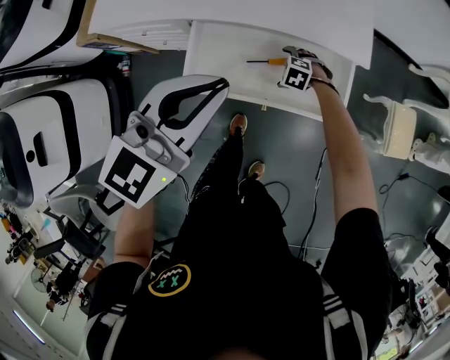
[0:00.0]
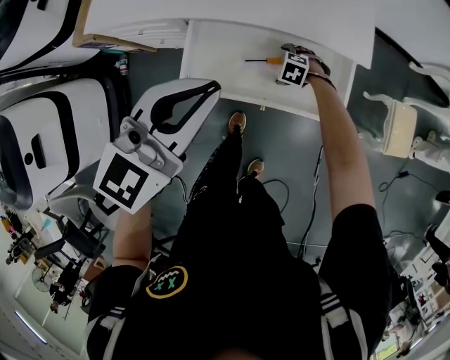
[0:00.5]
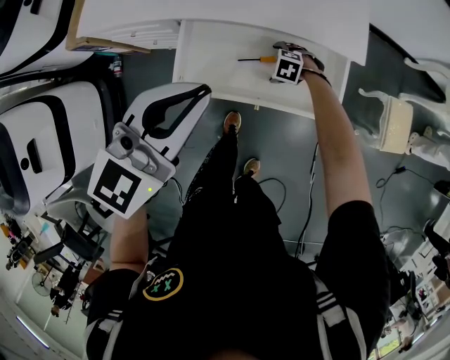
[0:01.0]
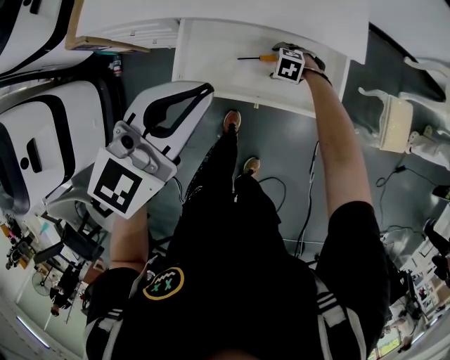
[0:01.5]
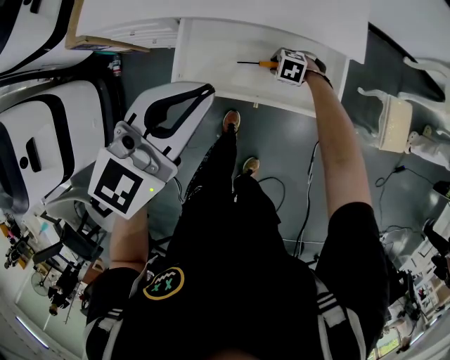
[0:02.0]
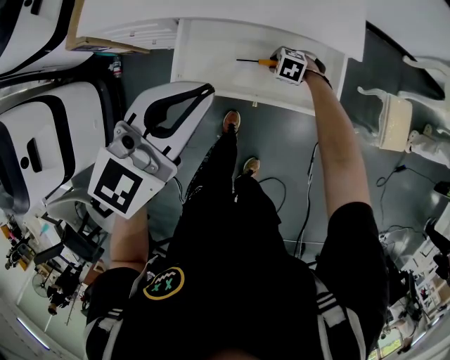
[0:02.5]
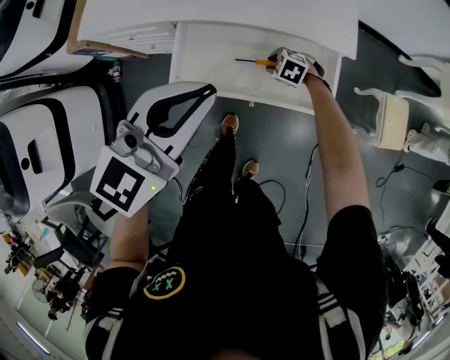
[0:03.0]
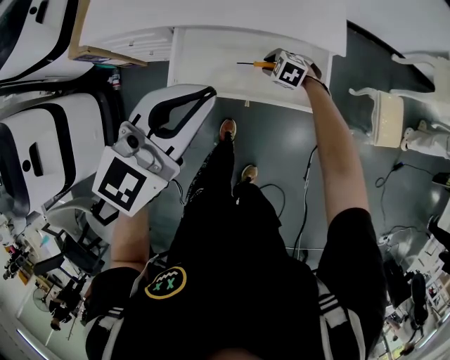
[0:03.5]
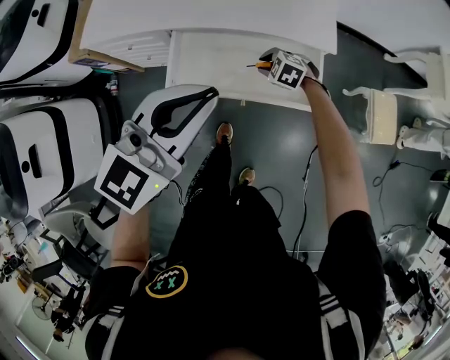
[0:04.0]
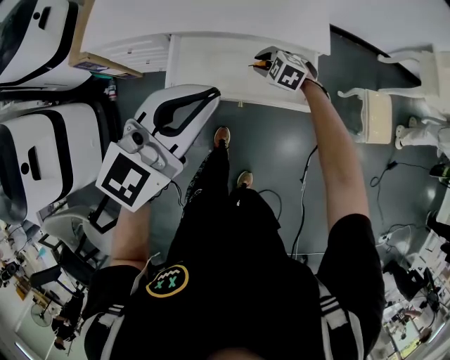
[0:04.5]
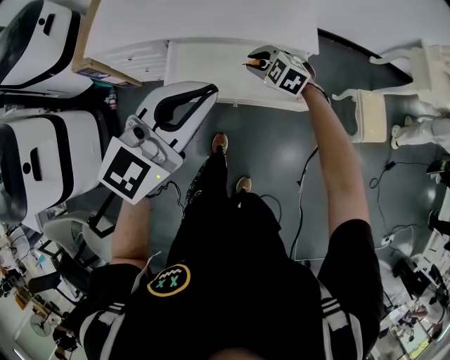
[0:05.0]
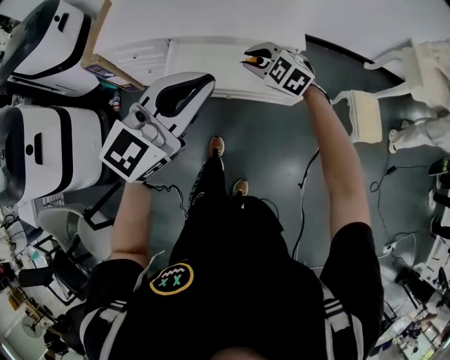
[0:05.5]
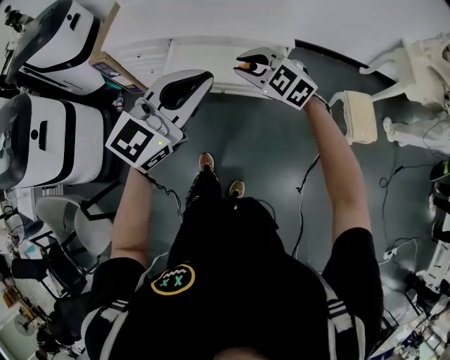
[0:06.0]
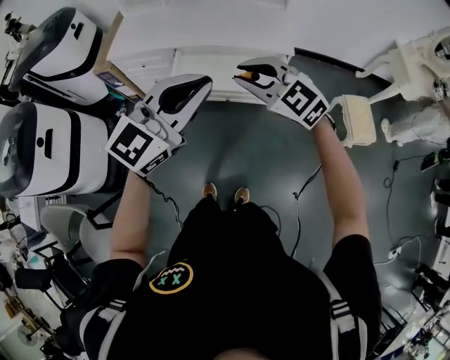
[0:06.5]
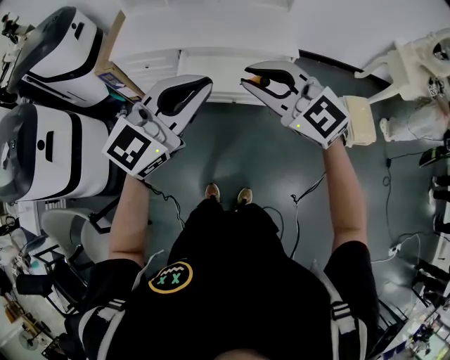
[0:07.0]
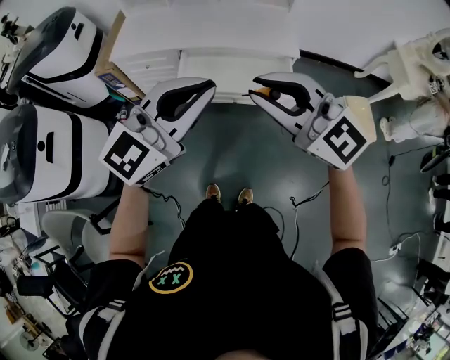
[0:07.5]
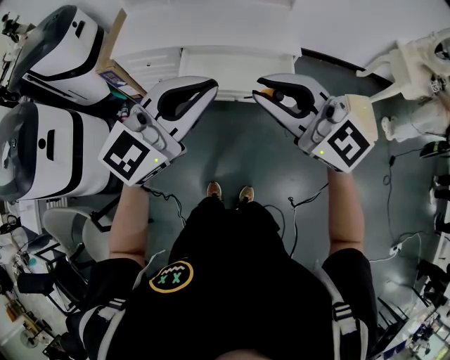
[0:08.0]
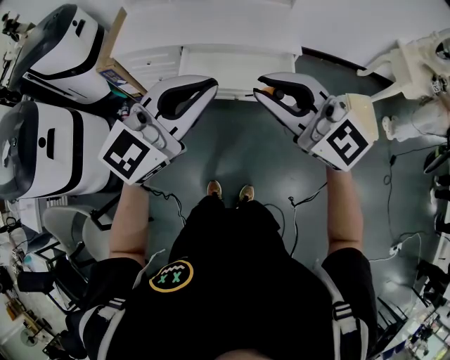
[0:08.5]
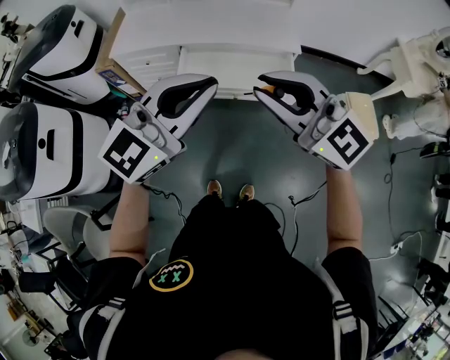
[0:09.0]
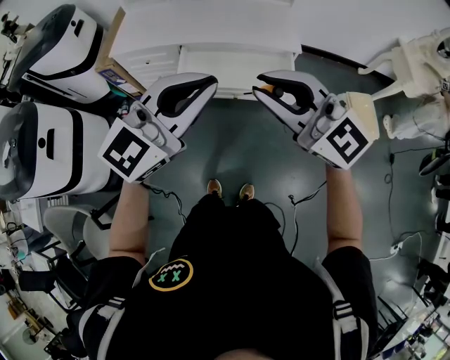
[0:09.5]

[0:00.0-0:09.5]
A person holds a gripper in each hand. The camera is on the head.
0:00.0 to 0:02.0: The right gripper closes its fingers.
0:02.0 to 0:04.0: The left gripper changes place by some 10 cm, while the right gripper moves upward, about 10 cm.
0:04.0 to 0:05.5: The left gripper moves backward and upward, about 15 cm, while the right gripper goes approximately 25 cm upward and backward, and swivels some 20 degrees.
0:05.5 to 0:07.5: The left gripper heads backward and upward, covering some 10 cm. Meanwhile the right gripper heads upward and backward, covering some 35 cm, and angles its fingers upward, by roughly 40 degrees.
0:07.5 to 0:09.5: Both grippers stay put.

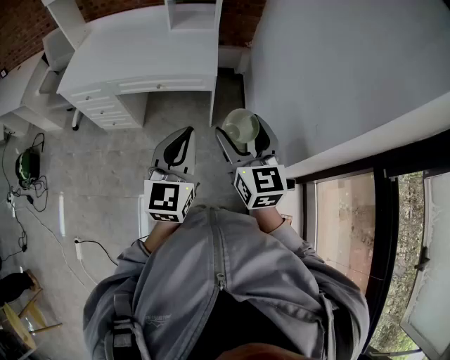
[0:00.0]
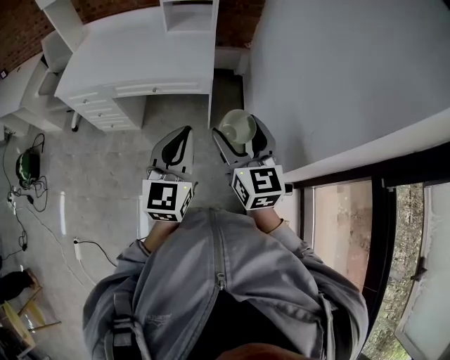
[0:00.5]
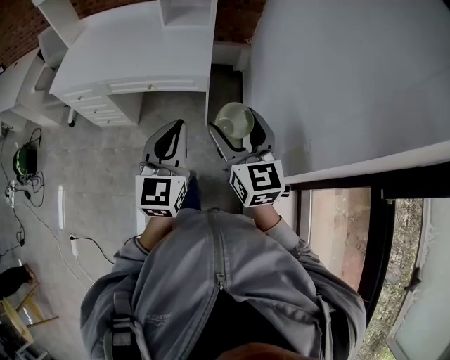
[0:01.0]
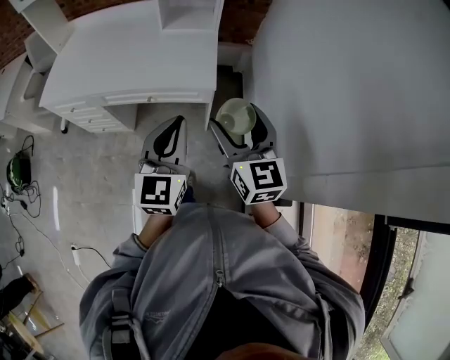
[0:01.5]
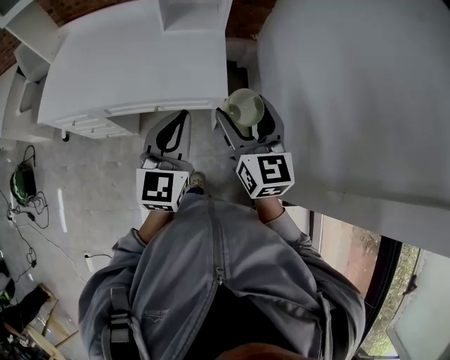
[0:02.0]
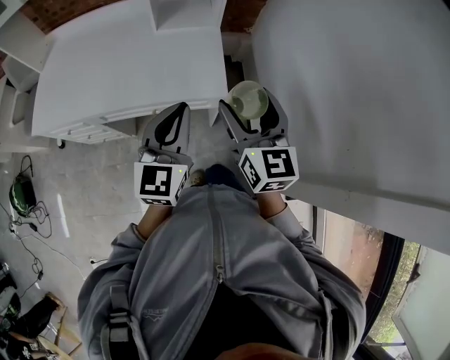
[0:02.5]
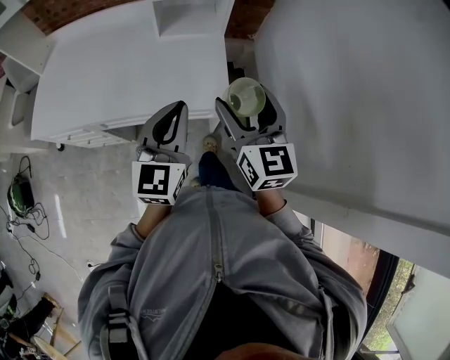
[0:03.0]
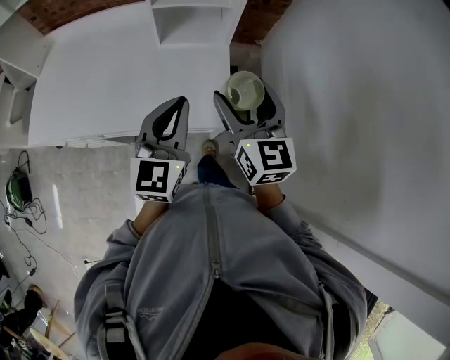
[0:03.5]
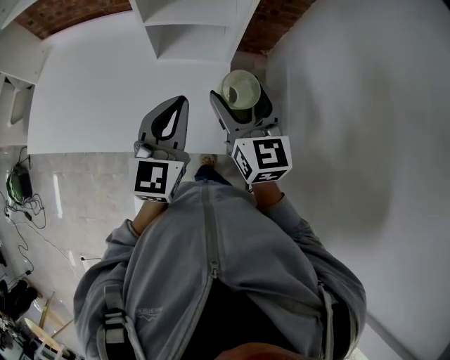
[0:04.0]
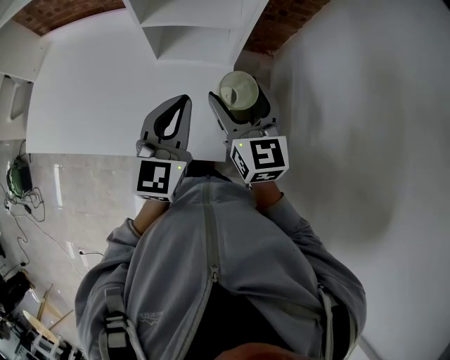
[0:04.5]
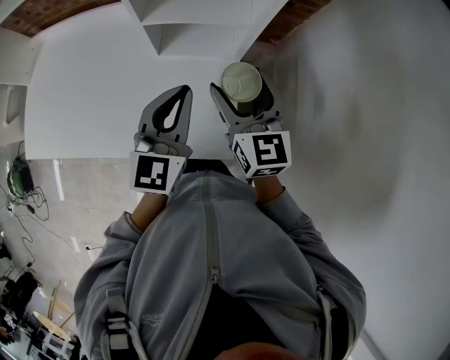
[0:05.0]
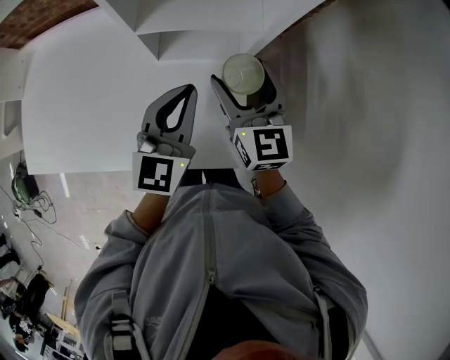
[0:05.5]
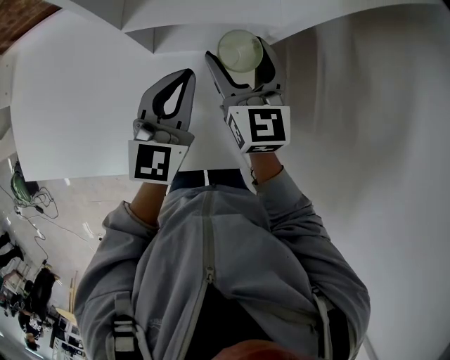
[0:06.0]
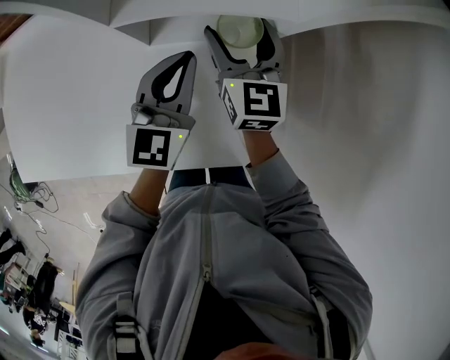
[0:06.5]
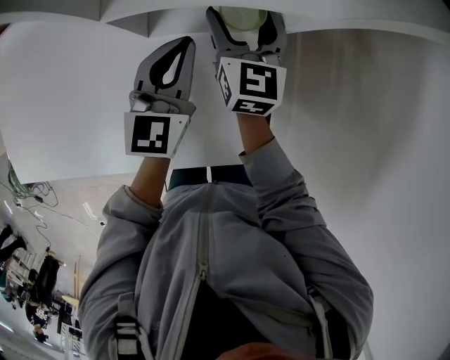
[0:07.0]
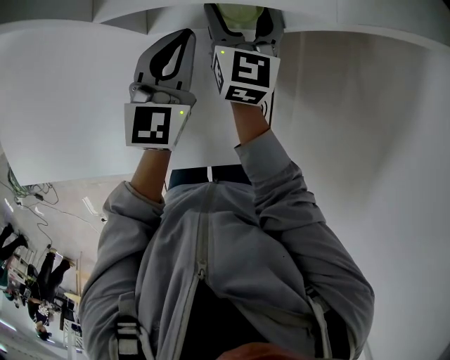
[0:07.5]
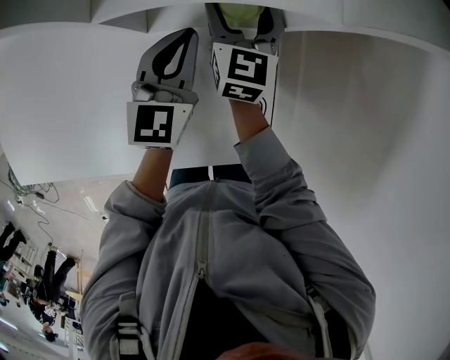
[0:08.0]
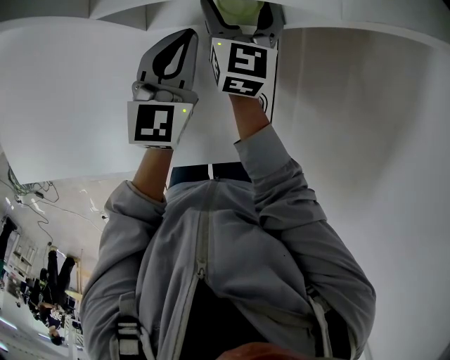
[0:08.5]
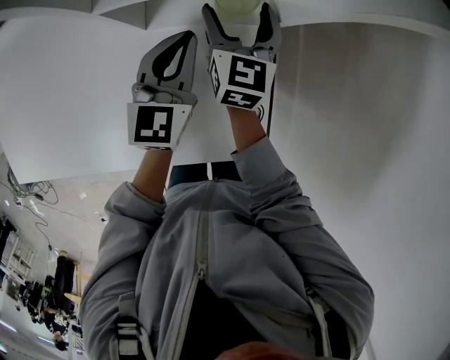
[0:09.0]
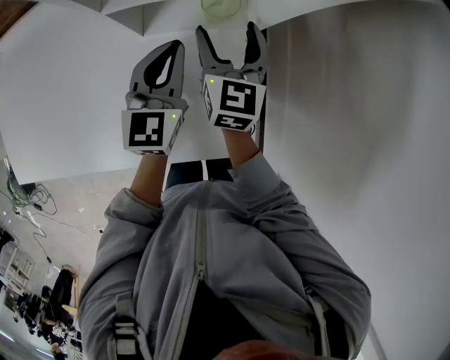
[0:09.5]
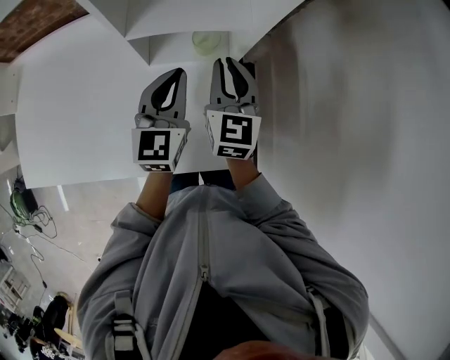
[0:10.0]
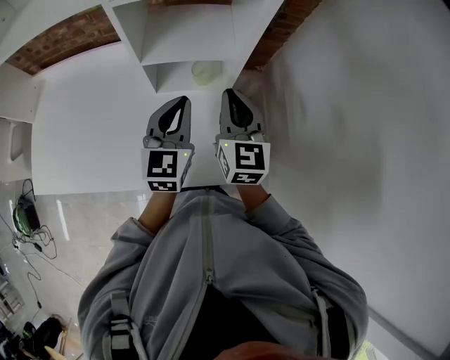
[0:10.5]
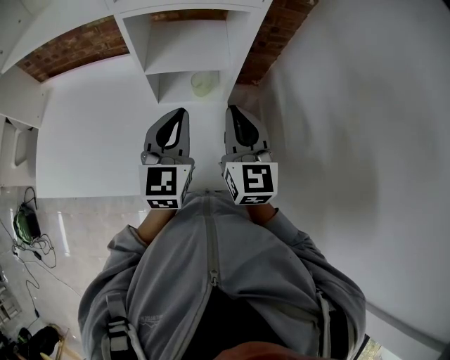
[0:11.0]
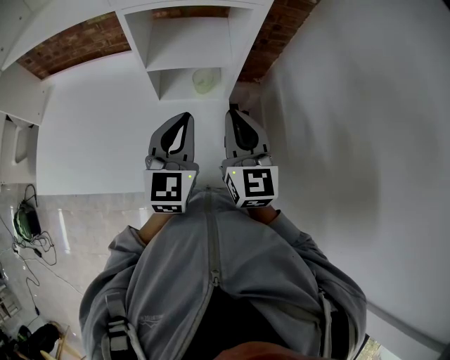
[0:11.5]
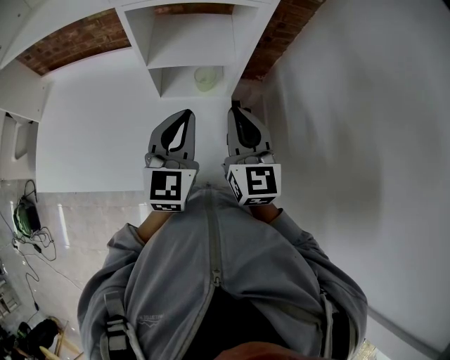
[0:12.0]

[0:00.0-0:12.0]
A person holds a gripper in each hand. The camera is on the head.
0:00.0 to 0:02.0: The two grippers go about 25 cm forward.
0:02.0 to 0:04.0: The two grippers go some 30 cm forward.
0:04.0 to 0:06.0: The grippers both shift forward and downward by about 25 cm.
0:06.0 to 0:08.0: The two grippers go roughly 15 cm downward and forward.
0:08.0 to 0:10.0: The left gripper moves backward and upward, some 10 cm, while the right gripper is displaced backward and upward by some 15 cm, and closes up.
0:10.0 to 0:12.0: The grippers both shift upward and backward by approximately 15 cm.

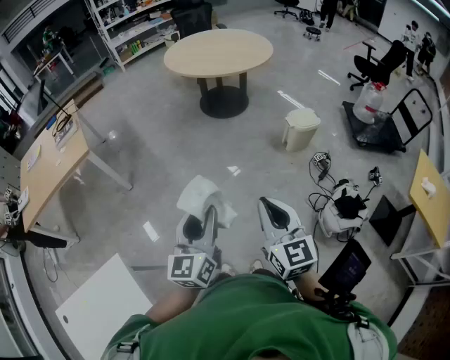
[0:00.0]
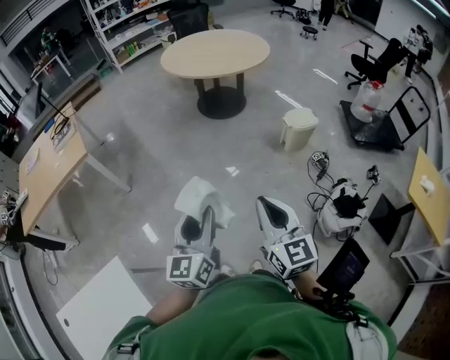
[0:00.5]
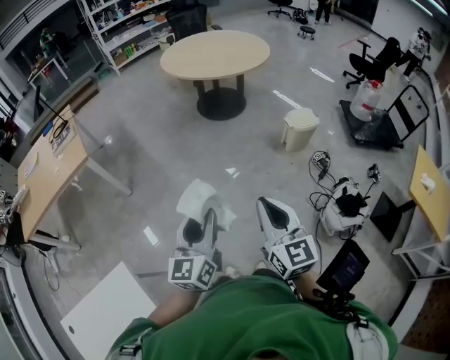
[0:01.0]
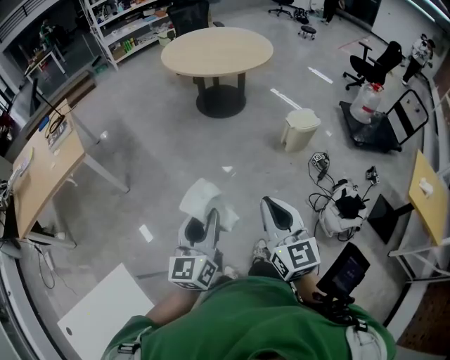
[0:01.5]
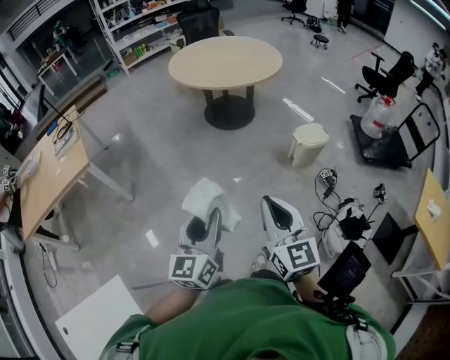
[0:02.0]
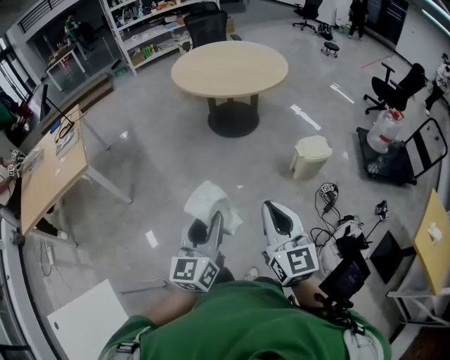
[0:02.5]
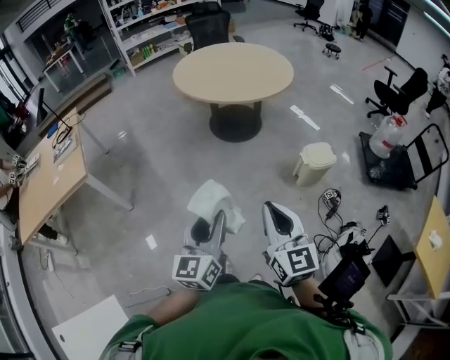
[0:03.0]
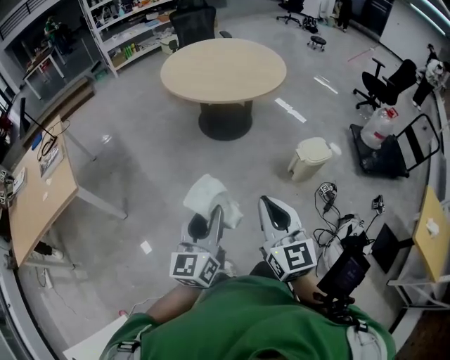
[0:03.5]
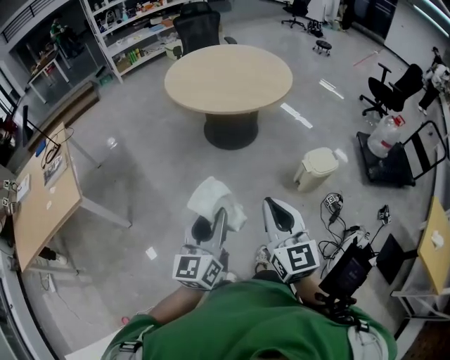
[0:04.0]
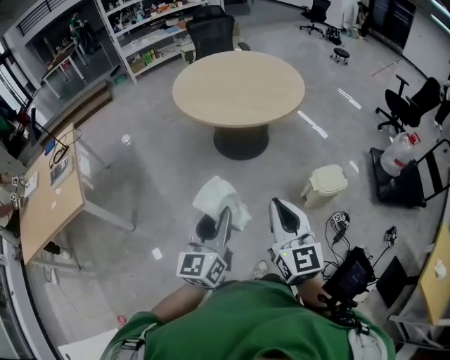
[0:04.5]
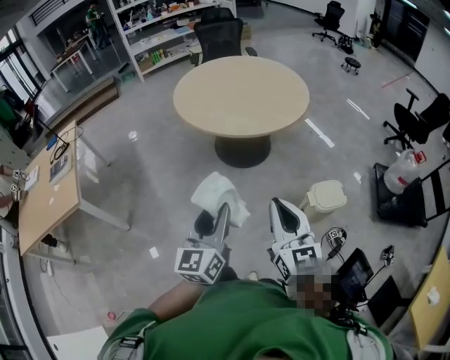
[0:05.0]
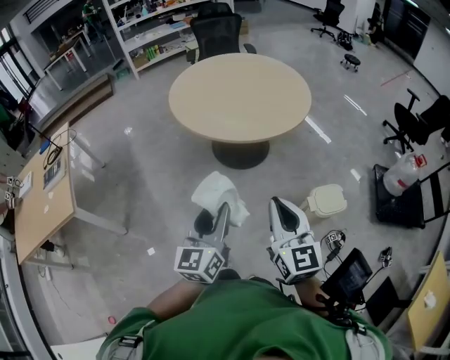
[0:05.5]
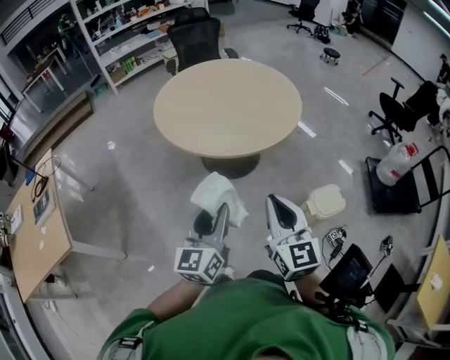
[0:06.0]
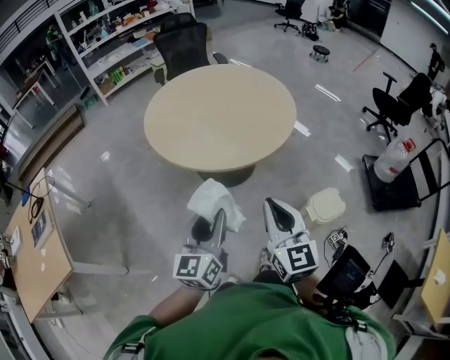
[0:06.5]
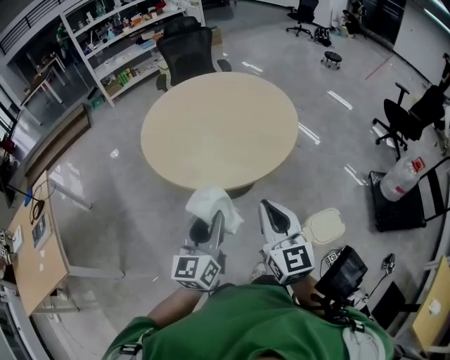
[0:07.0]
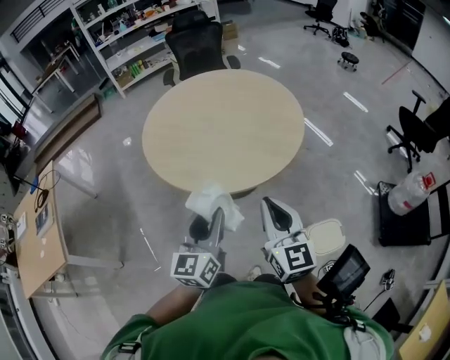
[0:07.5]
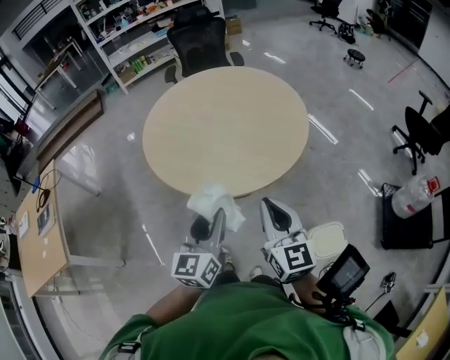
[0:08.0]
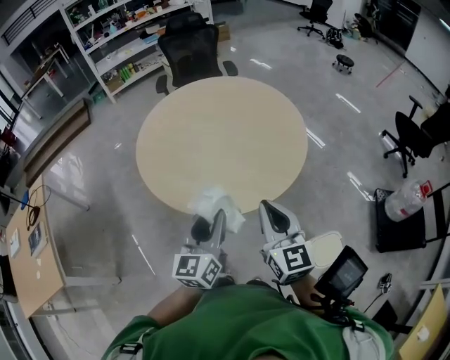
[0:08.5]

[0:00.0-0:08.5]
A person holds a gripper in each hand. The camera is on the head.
0:00.0 to 0:02.0: The two grippers go approximately 10 cm forward.
0:02.0 to 0:04.0: Both grippers move forward, some 25 cm.
0:04.0 to 0:06.5: Both grippers travel together forward, about 35 cm.
0:06.5 to 0:08.5: The left gripper goes some 25 cm forward and to the right. The right gripper goes some 25 cm forward.
